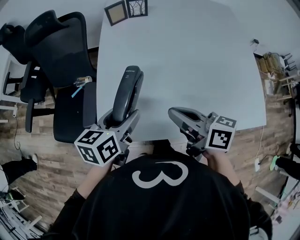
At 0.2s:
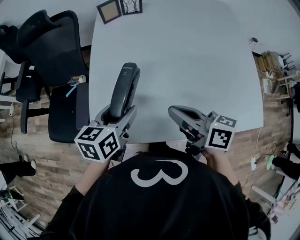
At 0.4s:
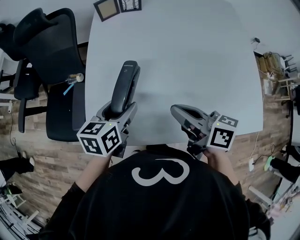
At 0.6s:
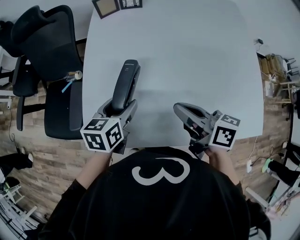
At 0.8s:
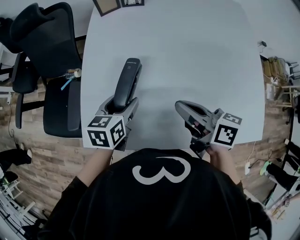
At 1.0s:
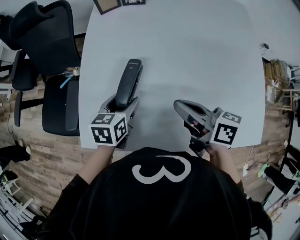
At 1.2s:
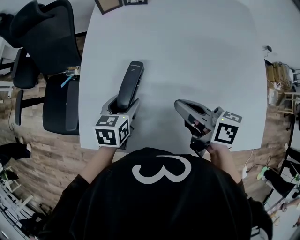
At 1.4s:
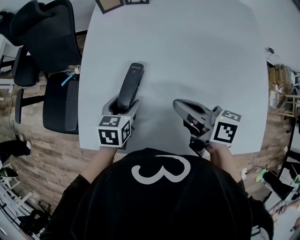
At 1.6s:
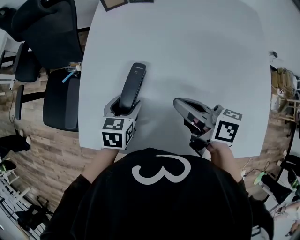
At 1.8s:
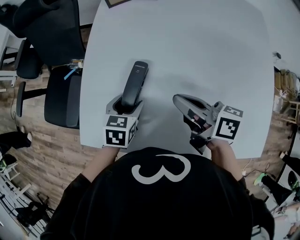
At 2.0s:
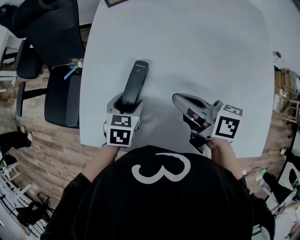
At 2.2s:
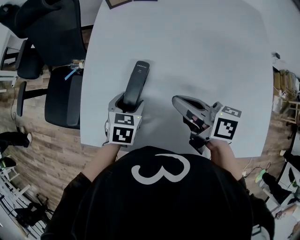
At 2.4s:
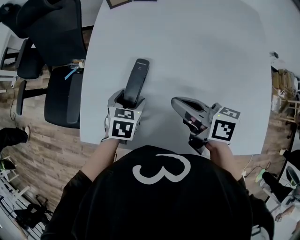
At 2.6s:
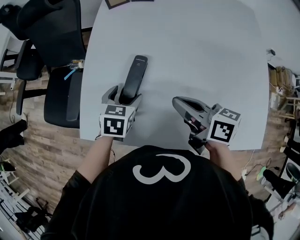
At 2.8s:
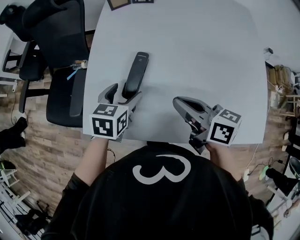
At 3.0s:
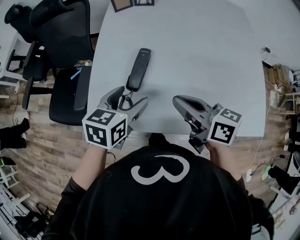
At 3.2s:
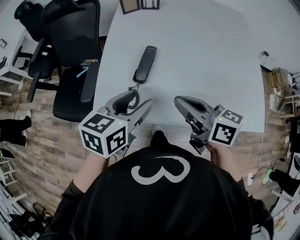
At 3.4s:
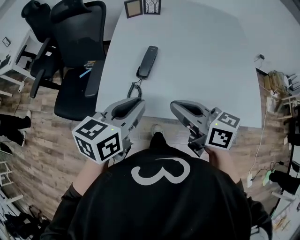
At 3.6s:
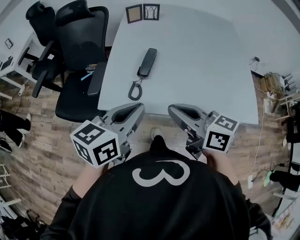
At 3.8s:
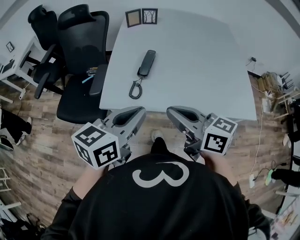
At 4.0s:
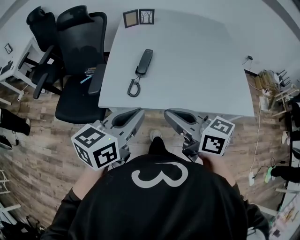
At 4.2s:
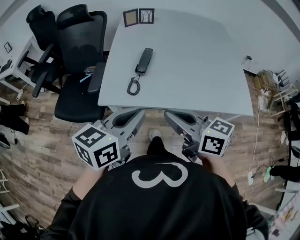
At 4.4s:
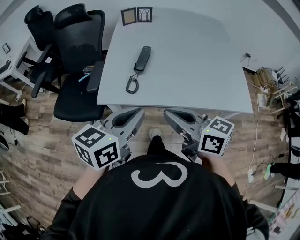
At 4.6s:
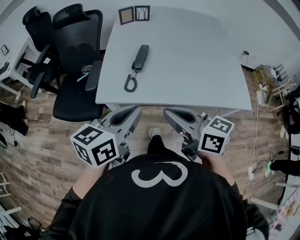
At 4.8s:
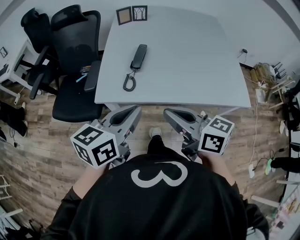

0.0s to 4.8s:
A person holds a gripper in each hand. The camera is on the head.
0.0s to 1.6s: The left gripper travels downward, forward and to the right by approximately 15 cm, and turns by some 20 degrees, while the right gripper moves forward, to the right and downward, roughly 15 cm.
1.6s to 3.2s: The left gripper is displaced upward and backward by approximately 20 cm, and swivels some 20 degrees. Meanwhile the right gripper goes about 15 cm backward, upward and to the left.
3.2s to 4.8s: The two grippers go about 15 cm backward. The left gripper closes up.

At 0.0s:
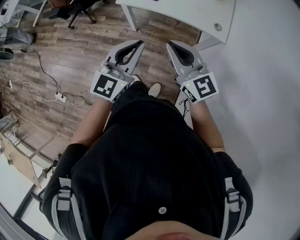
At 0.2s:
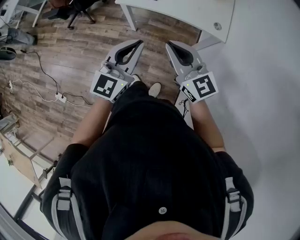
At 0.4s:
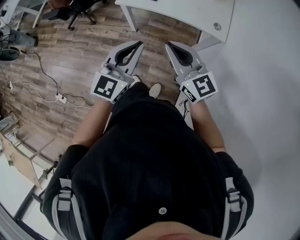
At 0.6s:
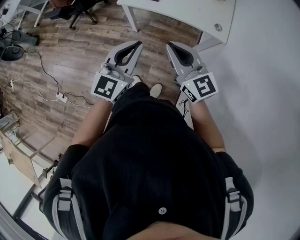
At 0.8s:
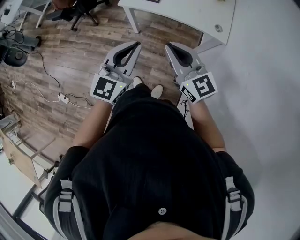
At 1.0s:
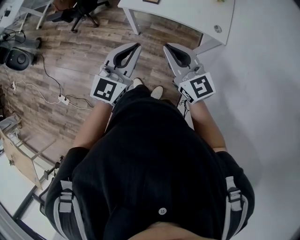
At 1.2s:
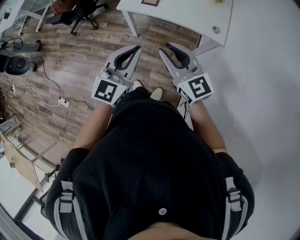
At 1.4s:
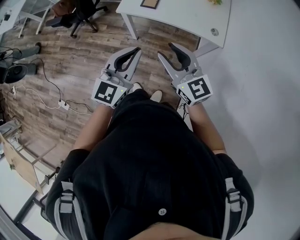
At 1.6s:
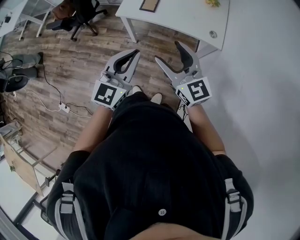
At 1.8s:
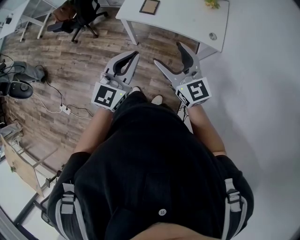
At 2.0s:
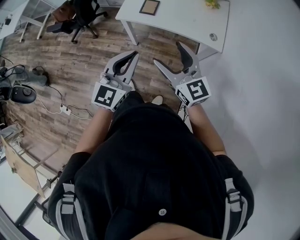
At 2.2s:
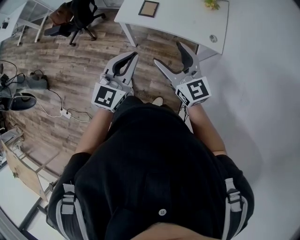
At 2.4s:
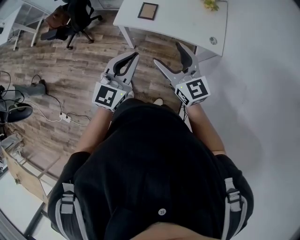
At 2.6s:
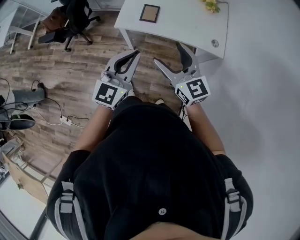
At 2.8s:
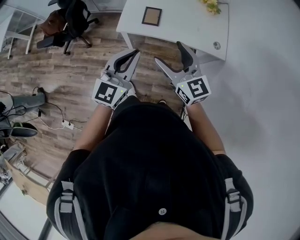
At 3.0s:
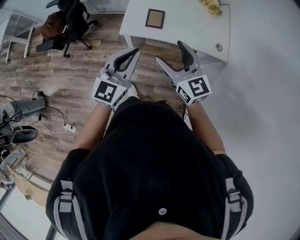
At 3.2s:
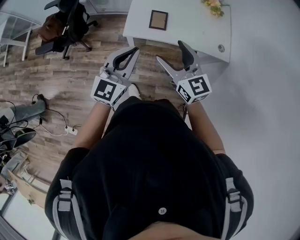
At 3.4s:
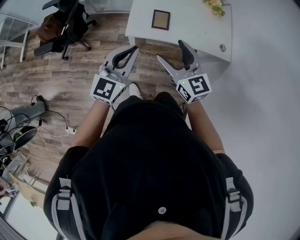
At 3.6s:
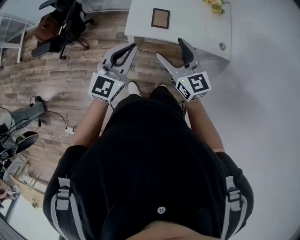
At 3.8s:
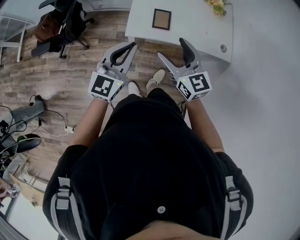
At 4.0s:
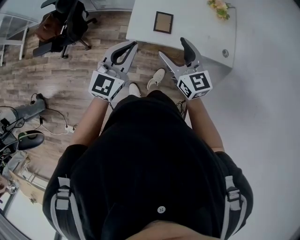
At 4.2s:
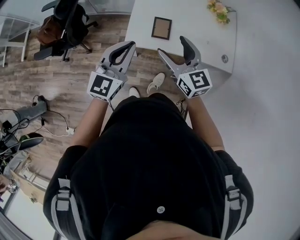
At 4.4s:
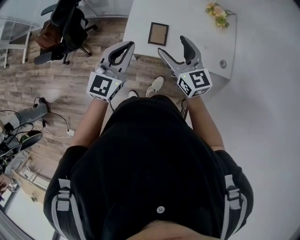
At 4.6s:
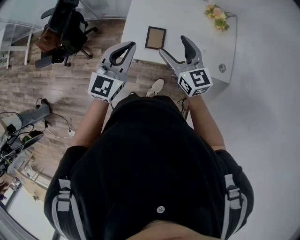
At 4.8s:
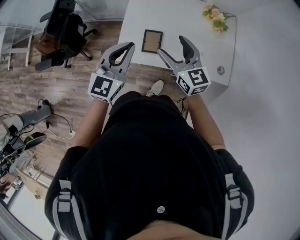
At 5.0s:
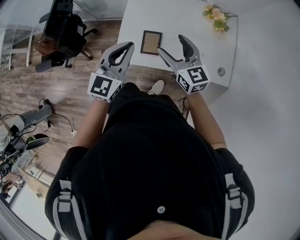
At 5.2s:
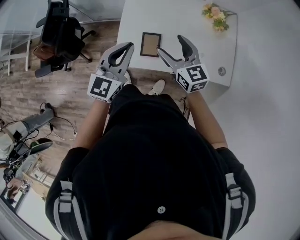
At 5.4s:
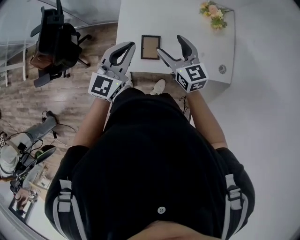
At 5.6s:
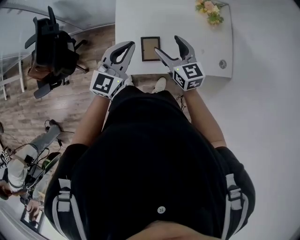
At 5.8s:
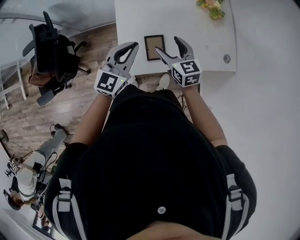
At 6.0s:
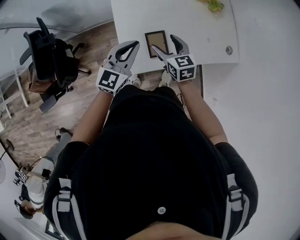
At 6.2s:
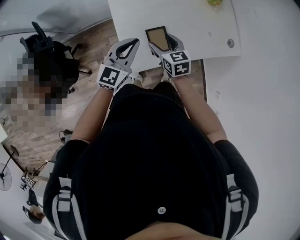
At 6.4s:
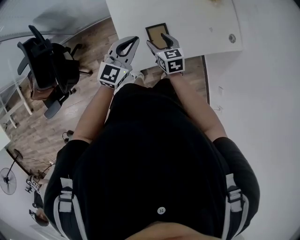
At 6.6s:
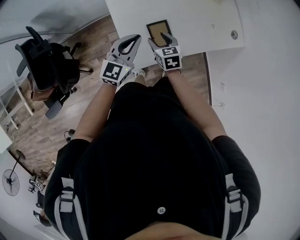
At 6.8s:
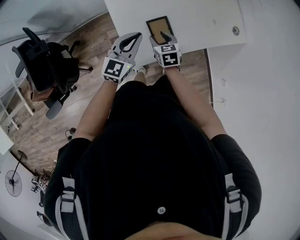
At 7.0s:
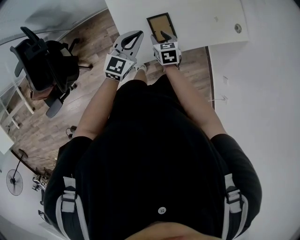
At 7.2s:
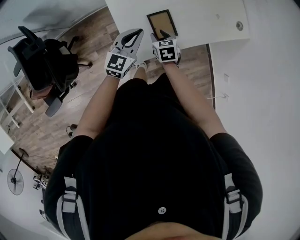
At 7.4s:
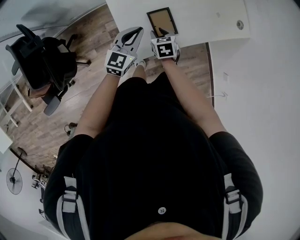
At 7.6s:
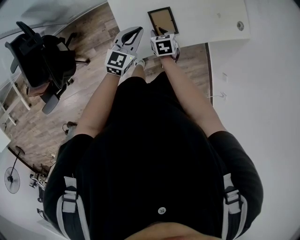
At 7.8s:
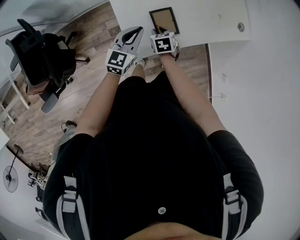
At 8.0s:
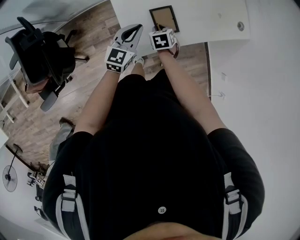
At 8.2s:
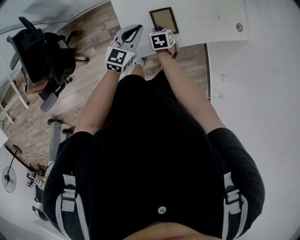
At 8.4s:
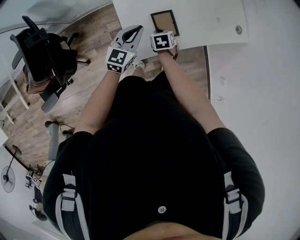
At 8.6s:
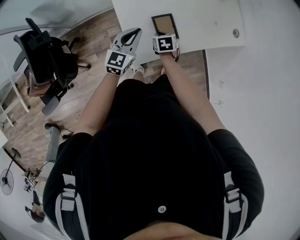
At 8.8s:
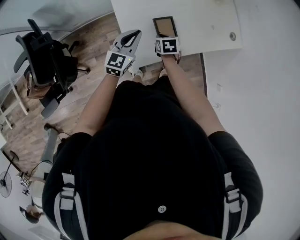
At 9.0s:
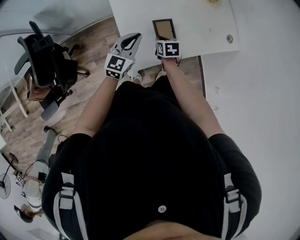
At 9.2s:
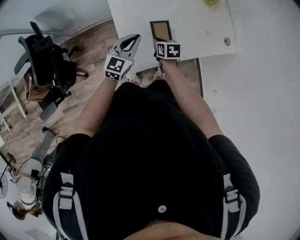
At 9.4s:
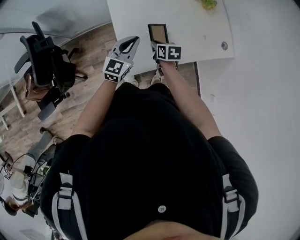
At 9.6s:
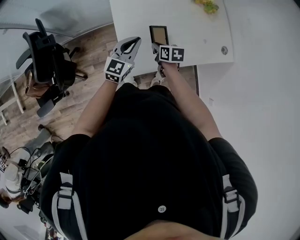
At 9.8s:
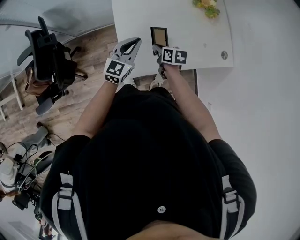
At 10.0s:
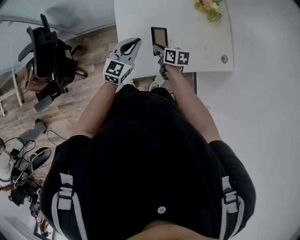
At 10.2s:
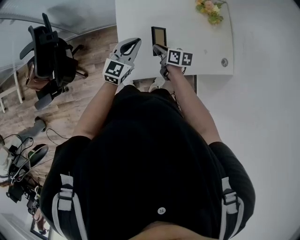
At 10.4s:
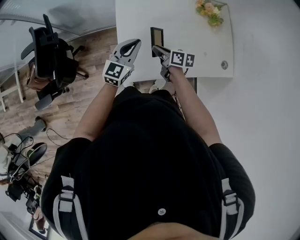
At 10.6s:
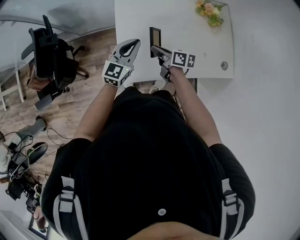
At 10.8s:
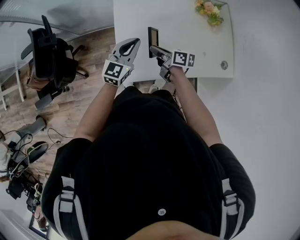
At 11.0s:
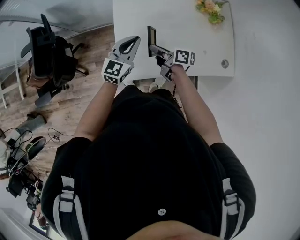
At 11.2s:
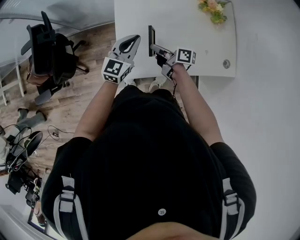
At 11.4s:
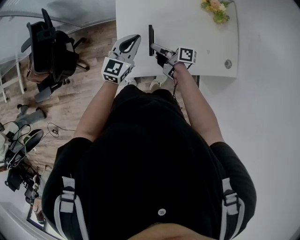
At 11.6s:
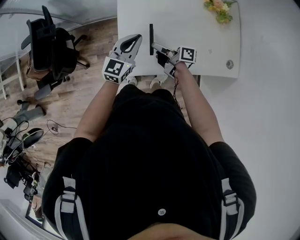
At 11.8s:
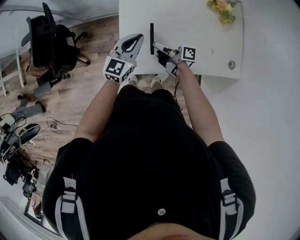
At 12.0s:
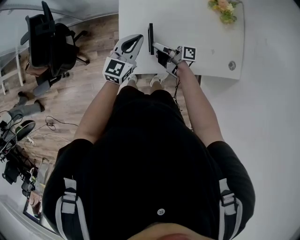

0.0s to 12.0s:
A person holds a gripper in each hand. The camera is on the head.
0.0s to 1.6s: The right gripper opens up.
1.6s to 3.0s: The two grippers go roughly 25 cm forward and to the left.
3.0s to 4.4s: Both grippers move forward, about 20 cm.
4.4s to 6.0s: The right gripper shifts about 25 cm downward and forward, and rotates about 30 degrees. Meanwhile the left gripper is displaced forward and downward by some 25 cm, and rotates approximately 20 degrees.
6.0s to 7.6s: The two grippers go some 20 cm downward. The right gripper rotates some 30 degrees, and closes its fingers.
7.6s to 9.0s: Both grippers move upward, approximately 5 cm.
9.0s to 10.4s: The left gripper moves upward, roughly 5 cm, while the right gripper shifts about 10 cm upward, and tilts its fingers about 30 degrees upward.
10.4s to 12.0s: The right gripper rotates approximately 40 degrees.

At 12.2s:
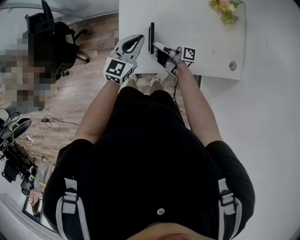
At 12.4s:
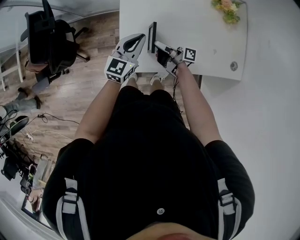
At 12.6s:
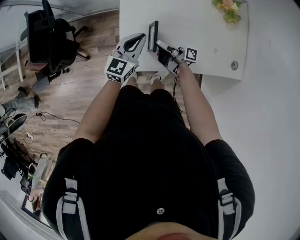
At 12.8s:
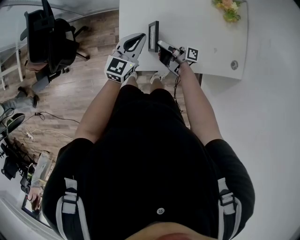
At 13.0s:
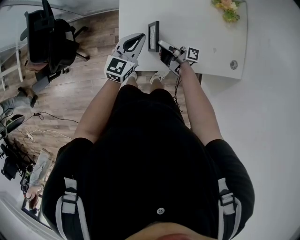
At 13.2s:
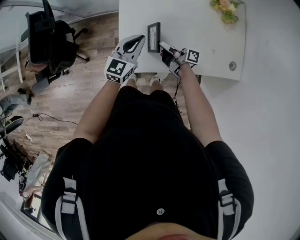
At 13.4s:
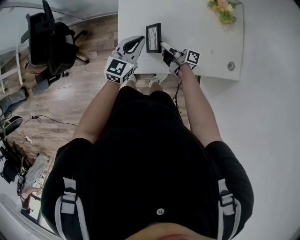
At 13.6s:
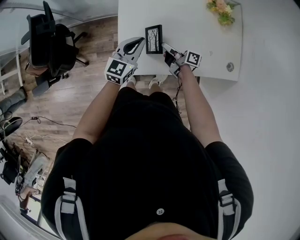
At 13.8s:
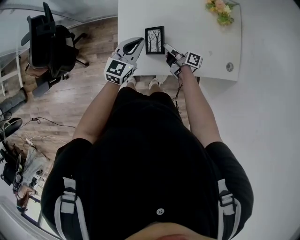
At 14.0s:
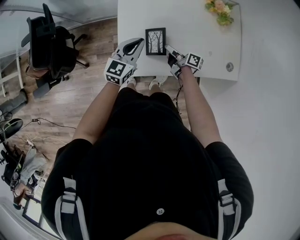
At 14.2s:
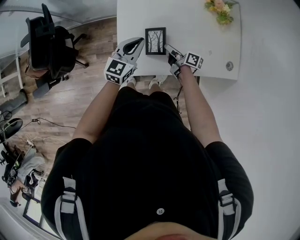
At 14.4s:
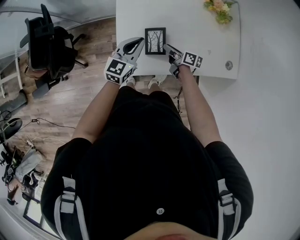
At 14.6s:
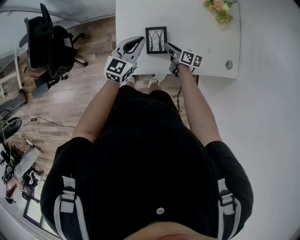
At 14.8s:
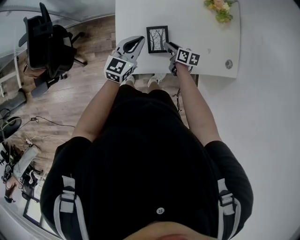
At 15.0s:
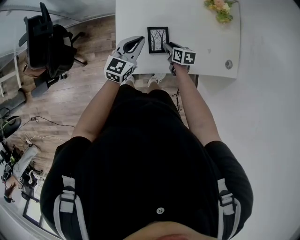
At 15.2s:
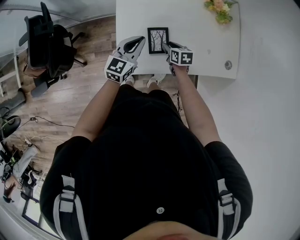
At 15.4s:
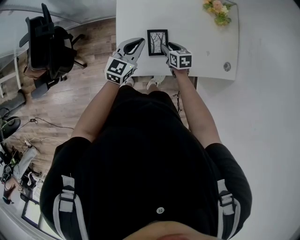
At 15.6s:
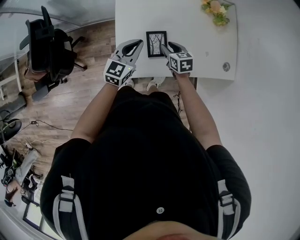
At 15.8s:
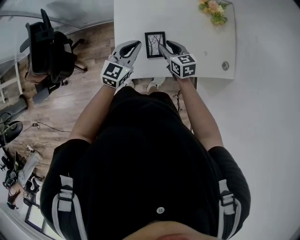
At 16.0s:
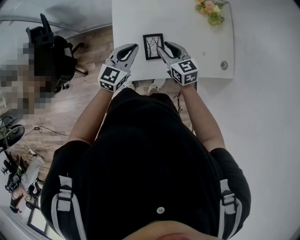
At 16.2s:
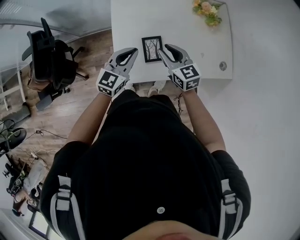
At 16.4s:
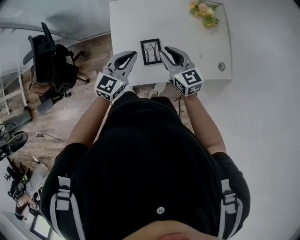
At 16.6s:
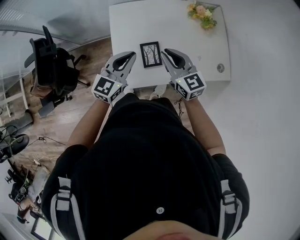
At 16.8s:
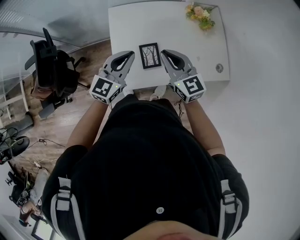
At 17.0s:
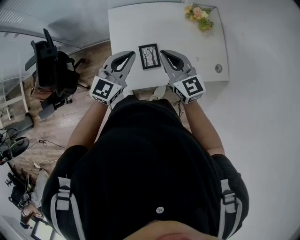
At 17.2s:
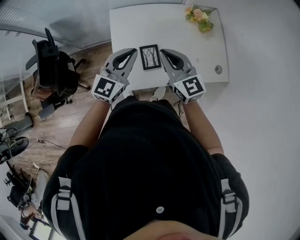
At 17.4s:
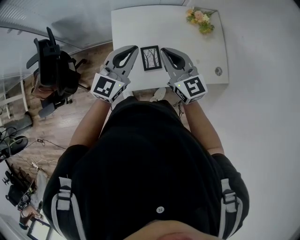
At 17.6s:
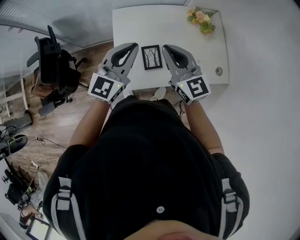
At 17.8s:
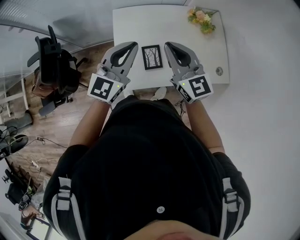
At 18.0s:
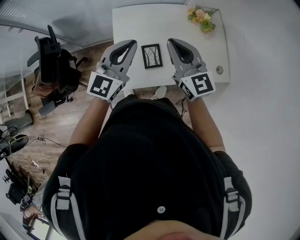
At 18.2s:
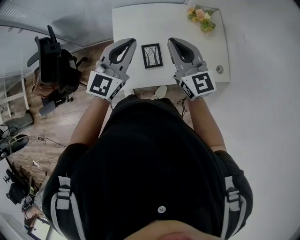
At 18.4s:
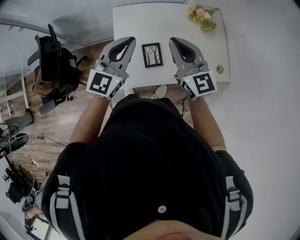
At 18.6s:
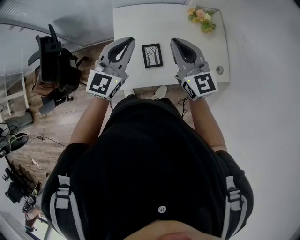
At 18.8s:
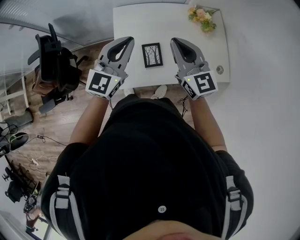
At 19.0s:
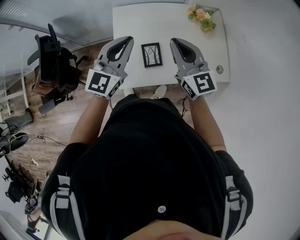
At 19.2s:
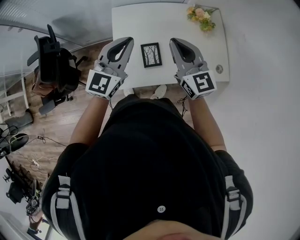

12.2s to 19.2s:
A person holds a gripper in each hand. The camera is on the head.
12.2s to 13.6s: The right gripper moves to the right, roughly 5 cm.
13.6s to 15.0s: The right gripper shifts approximately 5 cm downward, and angles its fingers downward, by some 40 degrees.
15.0s to 16.4s: The right gripper heads upward, covering some 25 cm, and changes its angle by about 40 degrees. The left gripper is displaced upward by about 10 cm.
16.4s to 17.8s: Both grippers move upward, roughly 15 cm.
17.8s to 19.2s: The grippers stay close to where they were, moving slightly.
